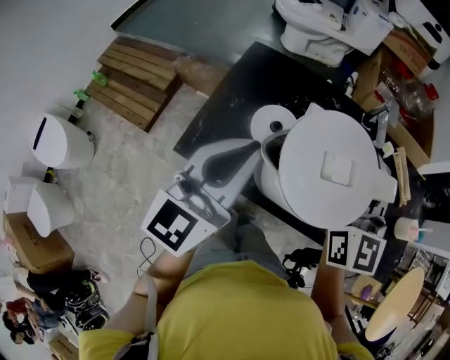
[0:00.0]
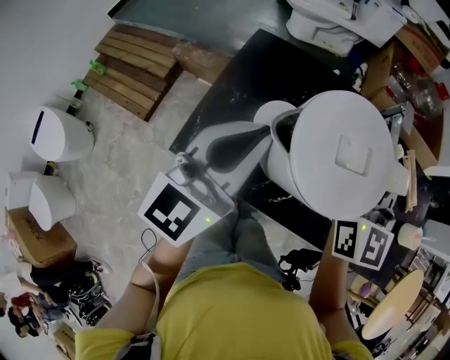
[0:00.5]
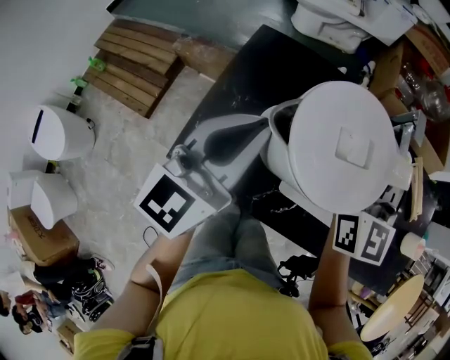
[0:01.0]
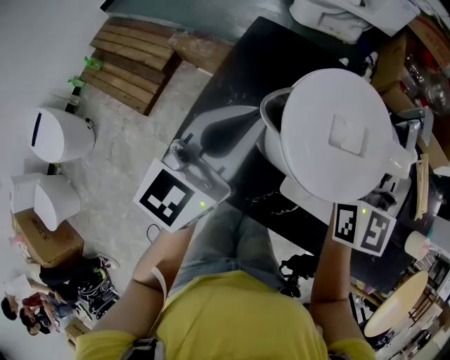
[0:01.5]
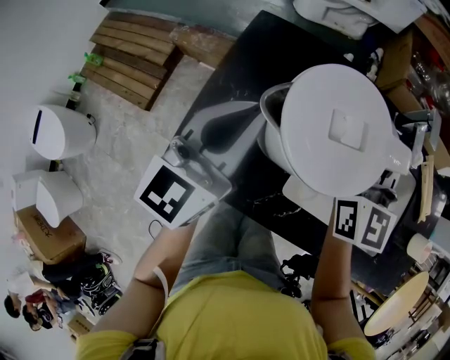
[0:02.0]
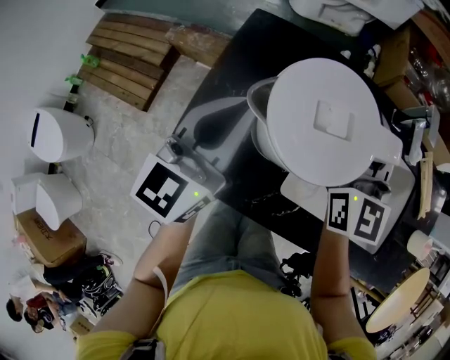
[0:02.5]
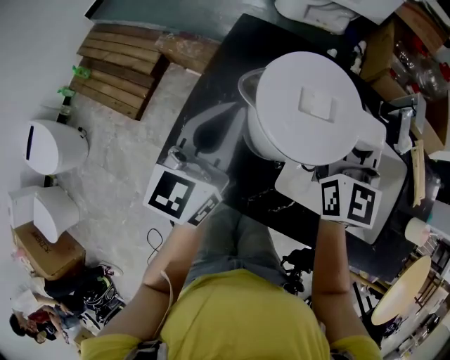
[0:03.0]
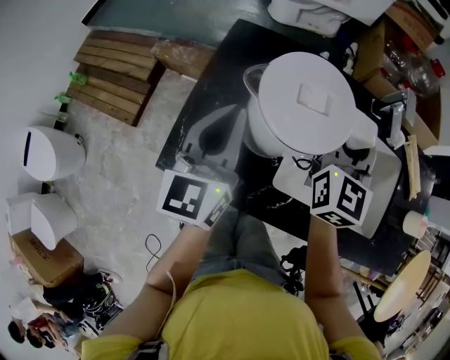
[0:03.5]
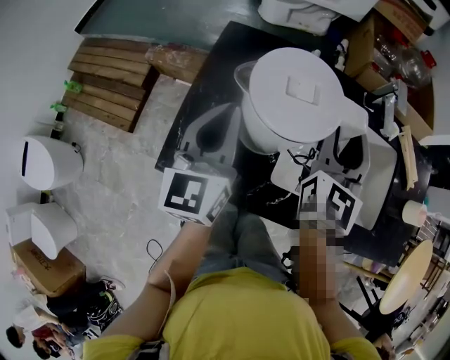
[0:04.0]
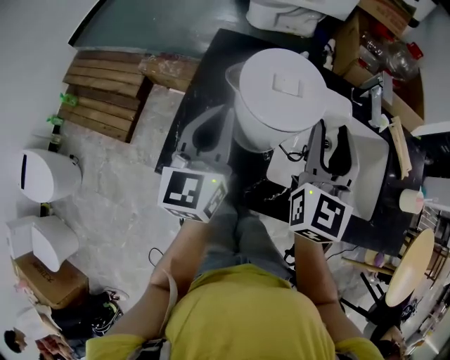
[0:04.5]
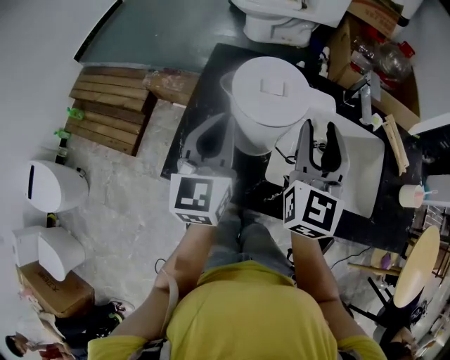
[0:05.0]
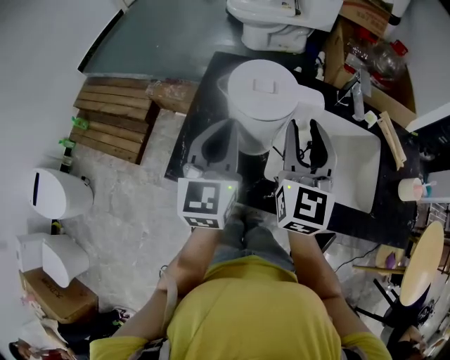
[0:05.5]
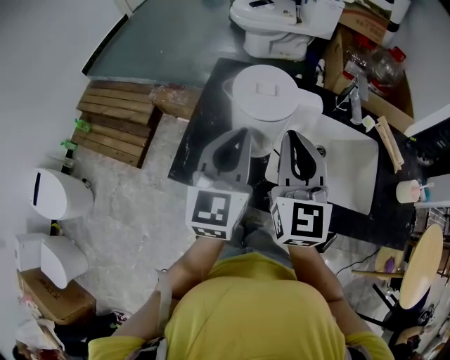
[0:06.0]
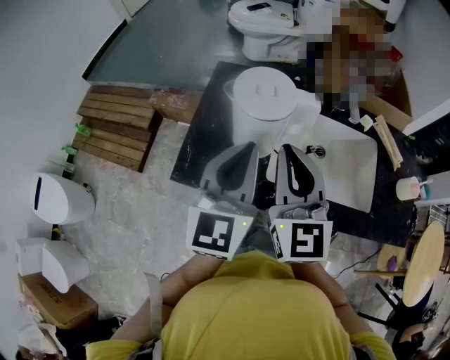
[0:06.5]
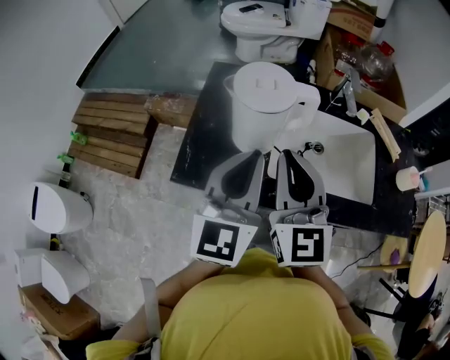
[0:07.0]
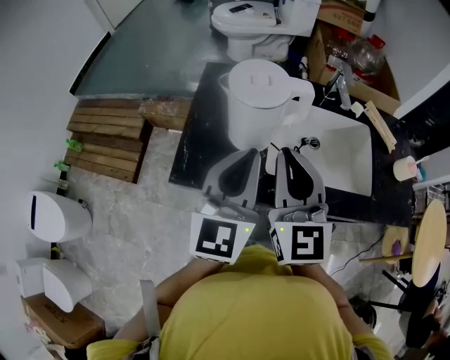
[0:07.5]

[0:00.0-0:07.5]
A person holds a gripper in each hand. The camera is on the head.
0:00.0 to 0:02.0: The grippers both shift forward and downward by about 15 cm.
0:02.0 to 0:04.0: The right gripper changes its angle by approximately 20 degrees, and opens its fingers.
0:04.0 to 0:05.5: The right gripper goes about 5 cm backward. The left gripper moves about 5 cm.
0:05.5 to 0:07.5: Both grippers travel together backward, roughly 10 cm. The right gripper closes.

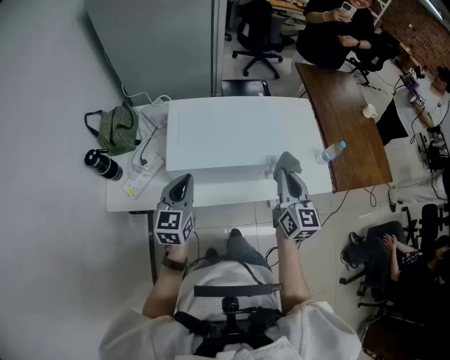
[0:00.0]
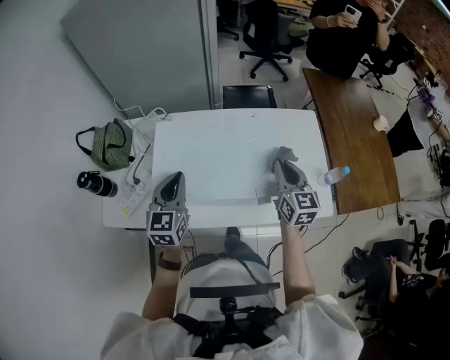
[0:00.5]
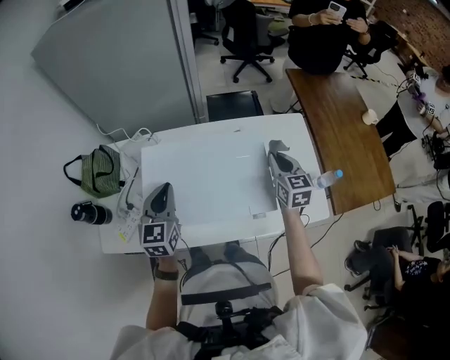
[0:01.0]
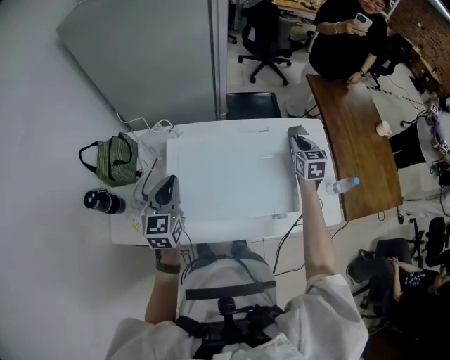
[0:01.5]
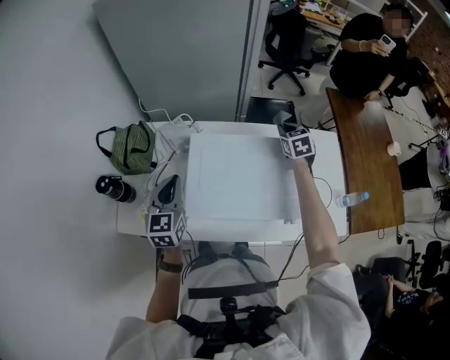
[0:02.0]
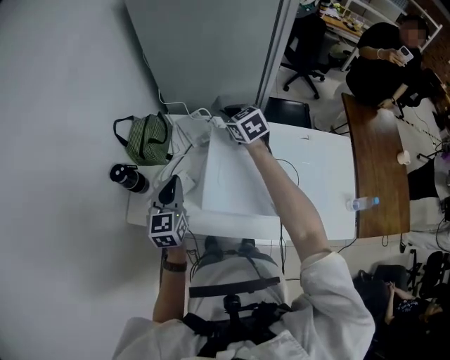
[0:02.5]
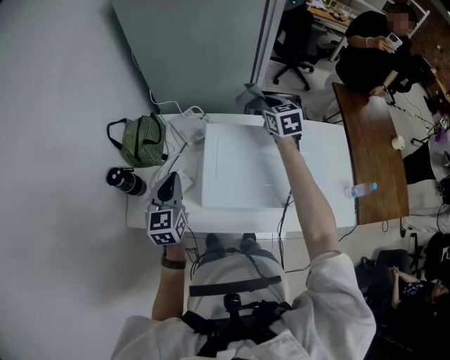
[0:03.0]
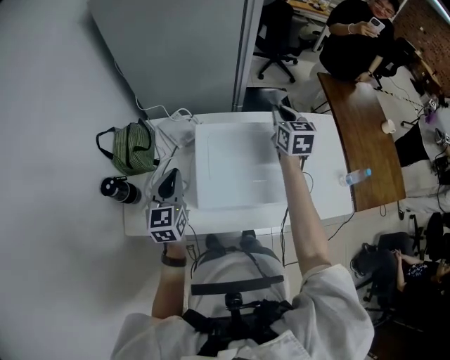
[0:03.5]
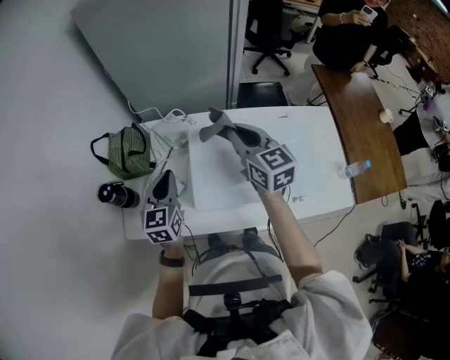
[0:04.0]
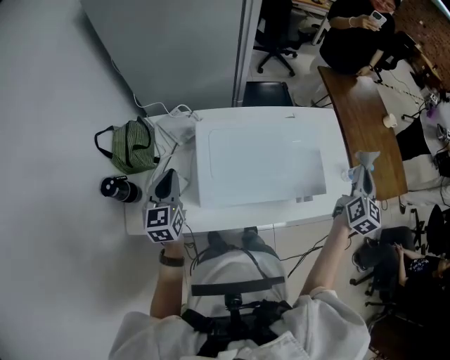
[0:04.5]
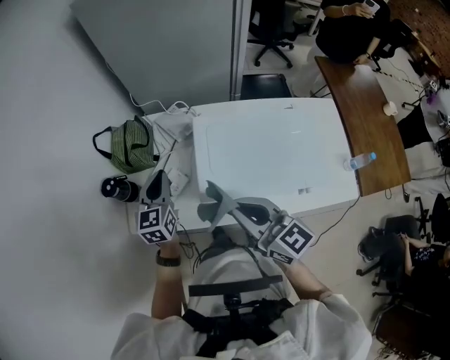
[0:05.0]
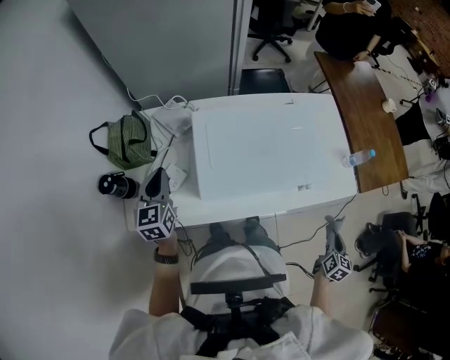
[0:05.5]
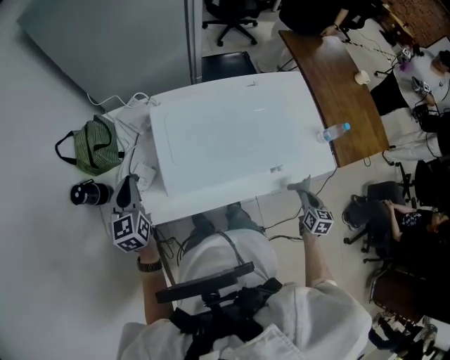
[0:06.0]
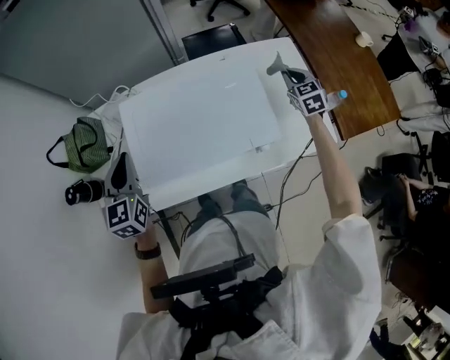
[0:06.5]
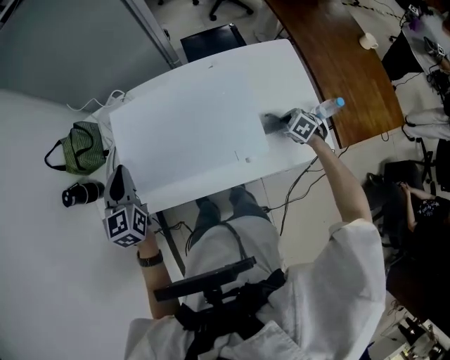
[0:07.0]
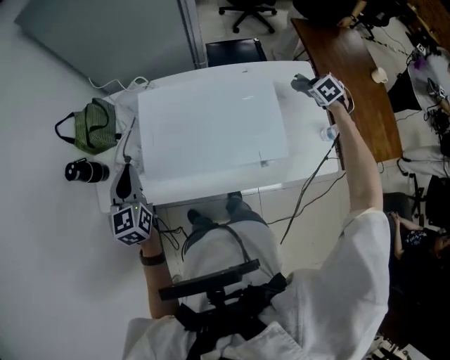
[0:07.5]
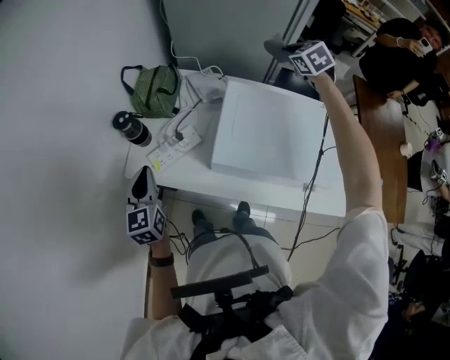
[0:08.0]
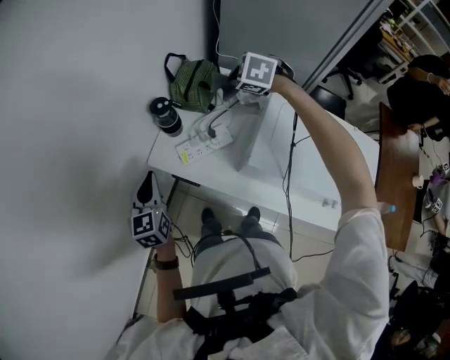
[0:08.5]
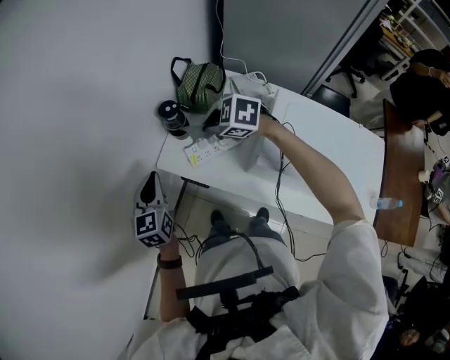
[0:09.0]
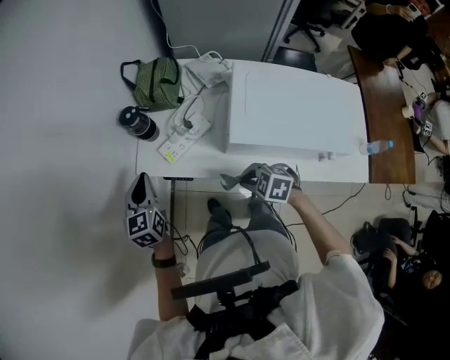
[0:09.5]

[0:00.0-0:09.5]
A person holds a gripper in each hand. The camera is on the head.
0:00.0 to 0:02.0: The left gripper moves forward and to the left, roughly 25 cm, while the right gripper is displaced forward by approximately 40 cm, and points its fingers roughly 40 degrees further downward.
0:02.0 to 0:04.0: The right gripper goes left and right, about 30 cm each way, reversing 2 times, and changes its angle by approximately 30 degrees.
0:04.0 to 0:05.5: The left gripper changes place by about 5 cm. Meanwhile the right gripper moves some 60 cm, and changes its angle by roughly 60 degrees.
0:05.5 to 0:07.5: The left gripper moves about 15 cm; the right gripper moves up and down over roughly 15 cm, changing direction 3 times, and rotates around the line of its fingers by approximately 70 degrees, counterclockwise from behind.
0:07.5 to 0:09.5: The left gripper changes place by approximately 35 cm. The right gripper reaches approximately 15 cm upward, then returns, and rotates about 60 degrees.

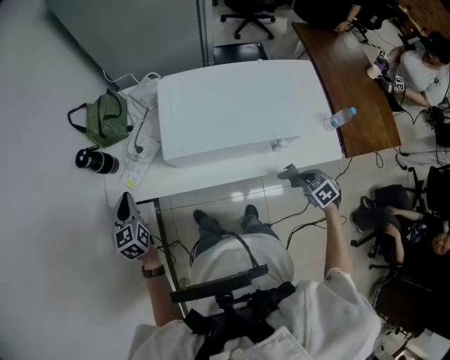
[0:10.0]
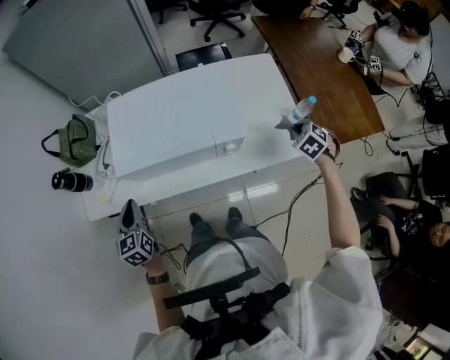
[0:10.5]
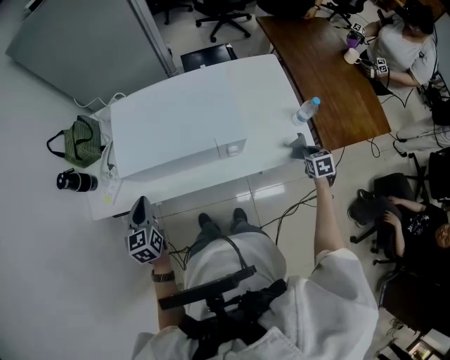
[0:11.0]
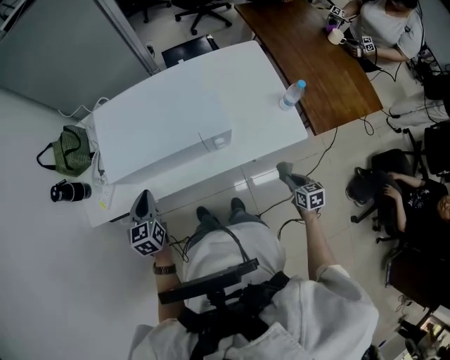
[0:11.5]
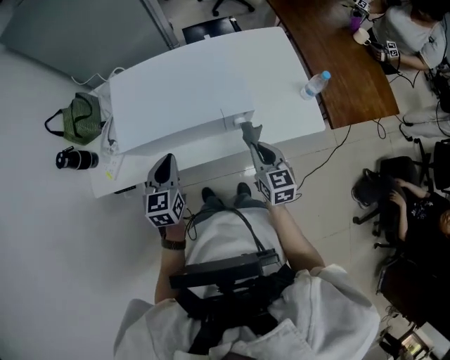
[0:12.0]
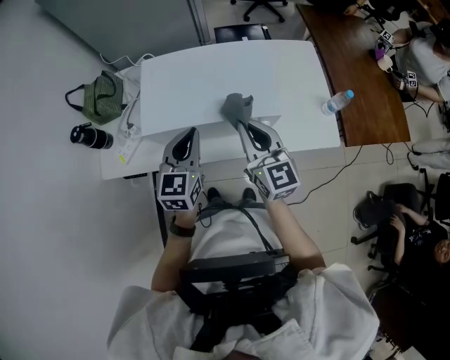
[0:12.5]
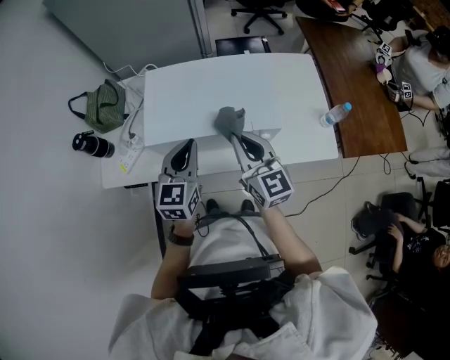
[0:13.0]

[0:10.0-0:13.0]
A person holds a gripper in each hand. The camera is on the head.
0:10.0 to 0:11.5: The right gripper travels to the right and backward by roughly 25 cm, and swivels some 40 degrees; the left gripper goes about 35 cm to the right.
0:11.5 to 0:13.0: The left gripper travels upward by approximately 10 cm; the right gripper travels to the left, upward and forward by about 50 cm, and points its fingers some 50 degrees further upward.

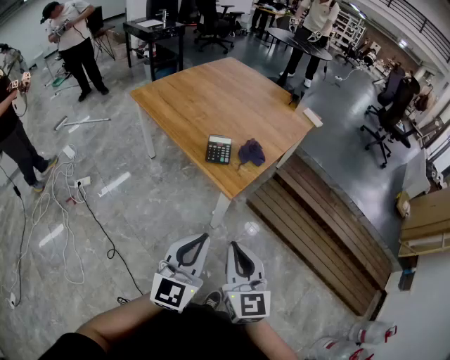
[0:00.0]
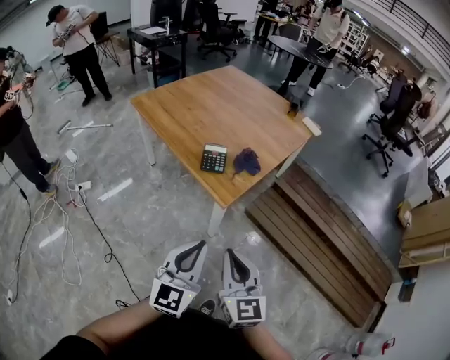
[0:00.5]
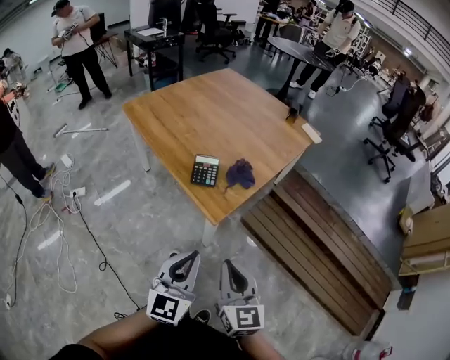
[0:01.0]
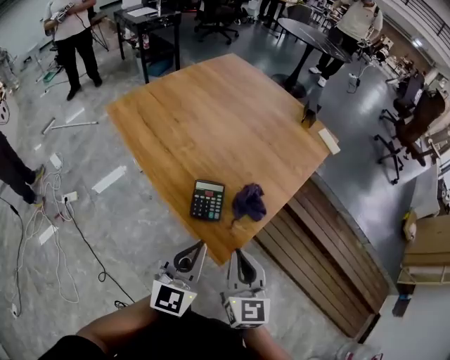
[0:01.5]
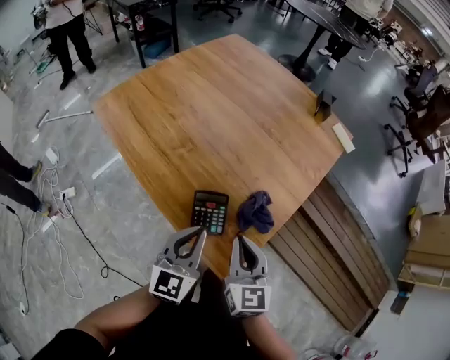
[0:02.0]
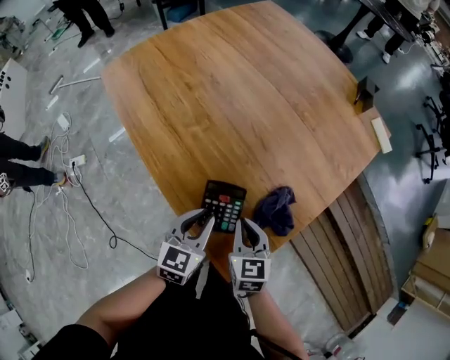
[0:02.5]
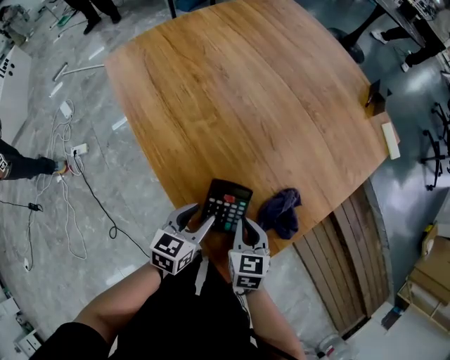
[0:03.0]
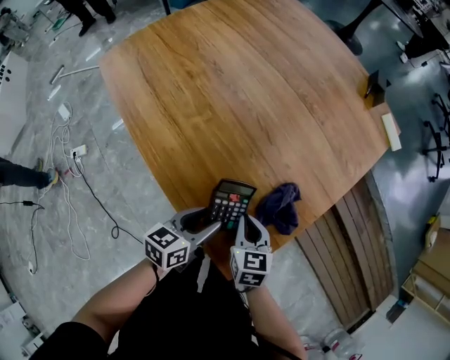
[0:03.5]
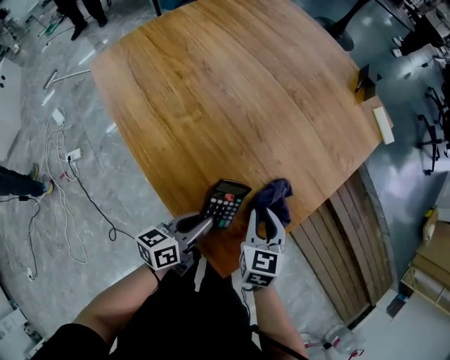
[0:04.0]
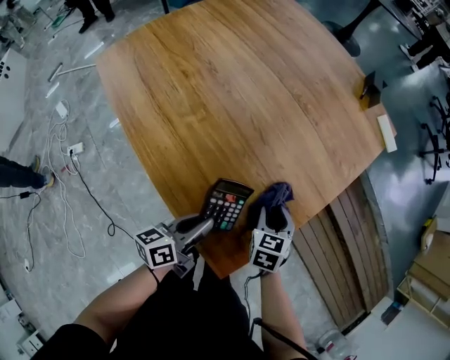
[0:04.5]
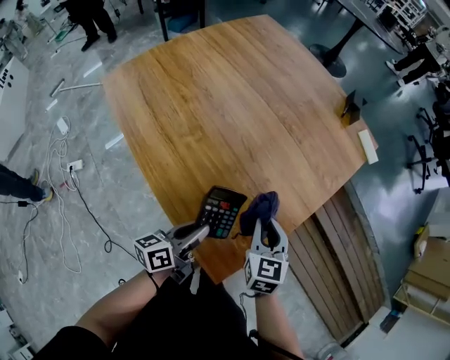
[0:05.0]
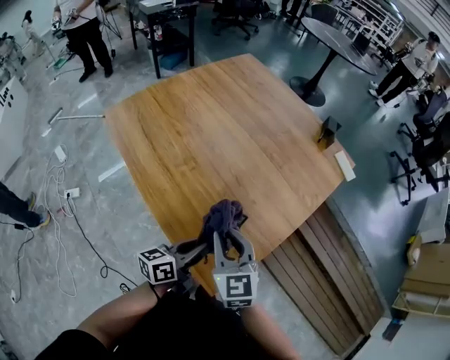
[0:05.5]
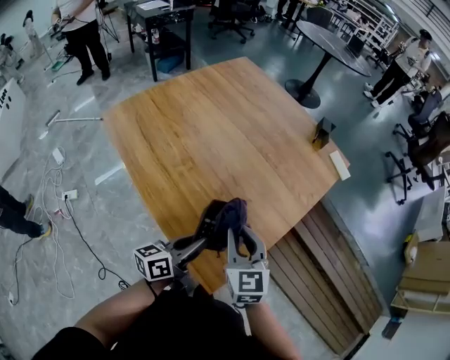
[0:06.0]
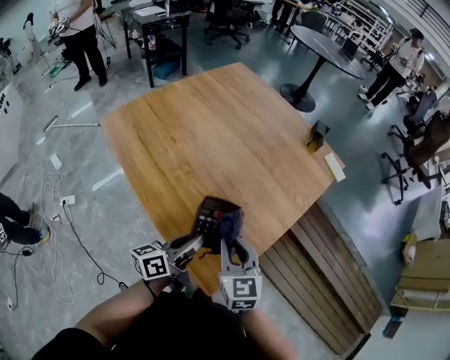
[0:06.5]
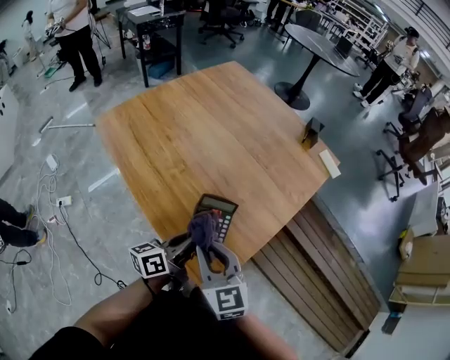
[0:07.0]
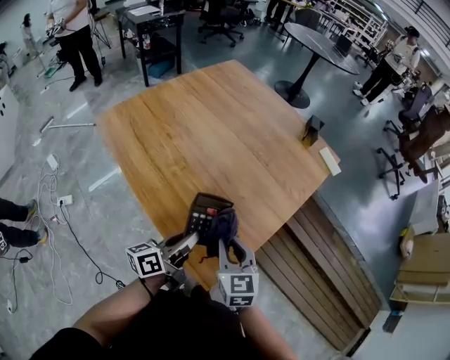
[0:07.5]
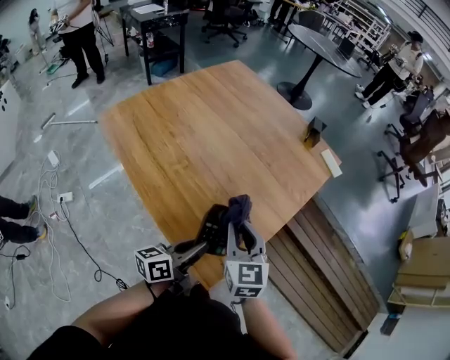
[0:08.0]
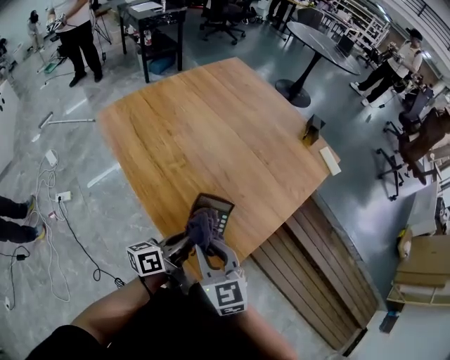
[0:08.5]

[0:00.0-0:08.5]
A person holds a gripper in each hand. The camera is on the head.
0:00.0 to 0:02.0: The two grippers travel together, forward, some 50 cm.
0:02.0 to 0:04.0: The right gripper shifts approximately 20 cm downward and forward, and changes its angle by roughly 20 degrees. Meanwhile the left gripper is displaced downward by approximately 15 cm, rolls counterclockwise, seen from behind, by some 40 degrees, and opens, then closes again.
0:04.0 to 0:06.5: Both grippers move upward, approximately 15 cm. The right gripper opens, then closes once more.
0:06.5 to 0:08.5: The right gripper swings forward and backward, roughly 10 cm each way, with 2 reversals.
